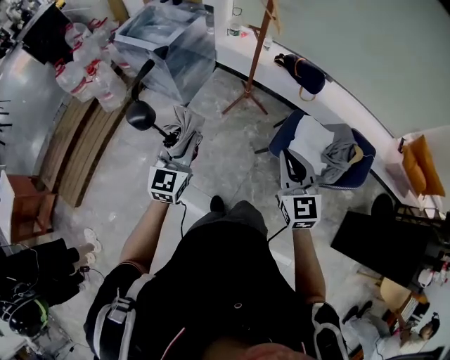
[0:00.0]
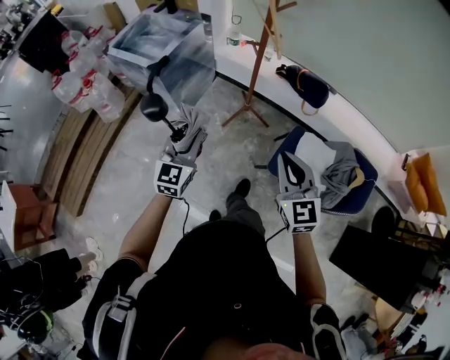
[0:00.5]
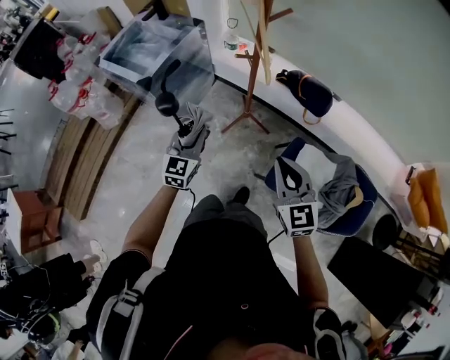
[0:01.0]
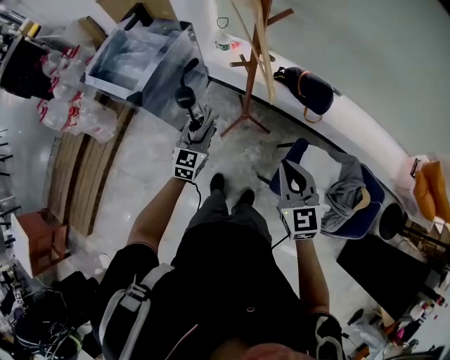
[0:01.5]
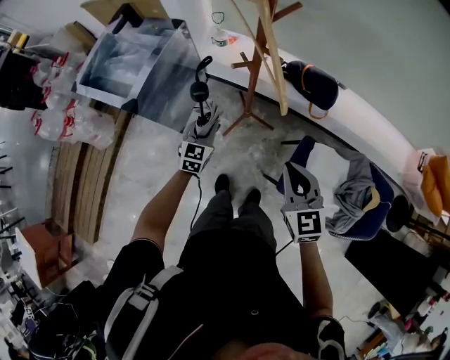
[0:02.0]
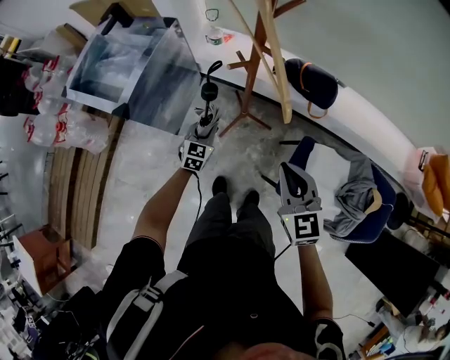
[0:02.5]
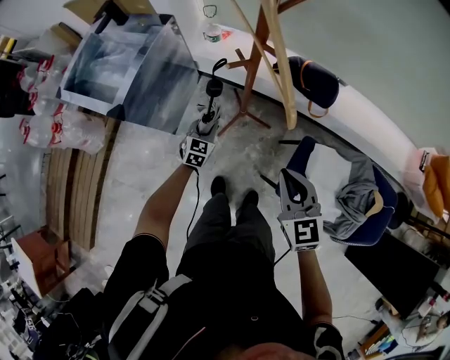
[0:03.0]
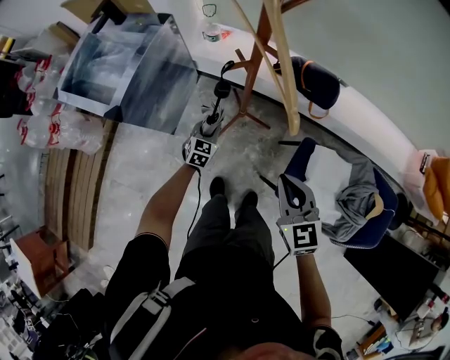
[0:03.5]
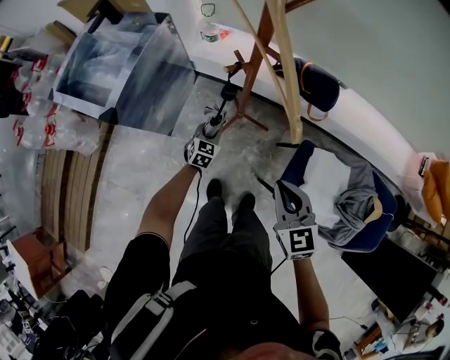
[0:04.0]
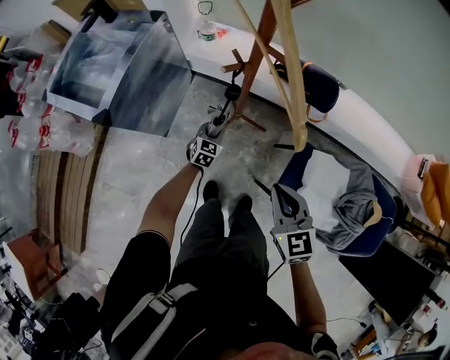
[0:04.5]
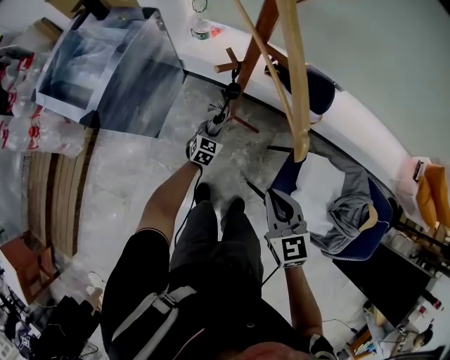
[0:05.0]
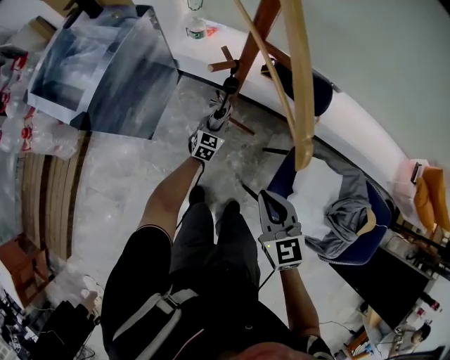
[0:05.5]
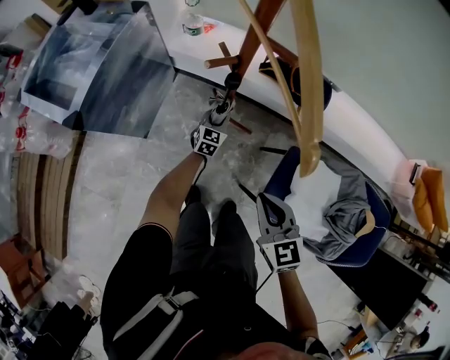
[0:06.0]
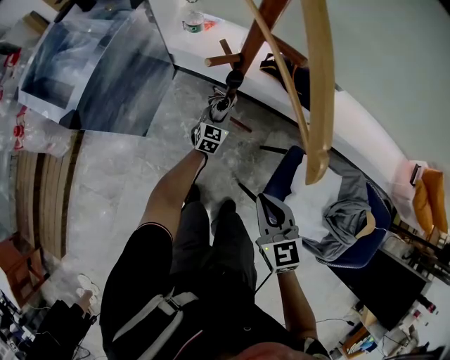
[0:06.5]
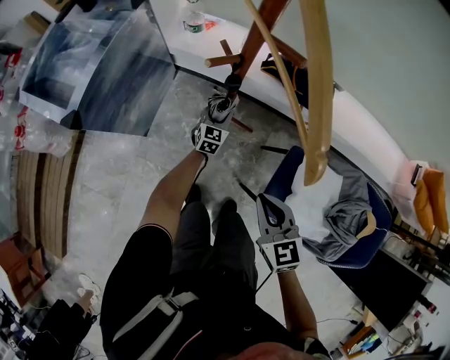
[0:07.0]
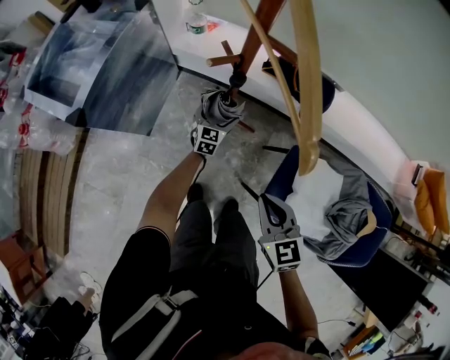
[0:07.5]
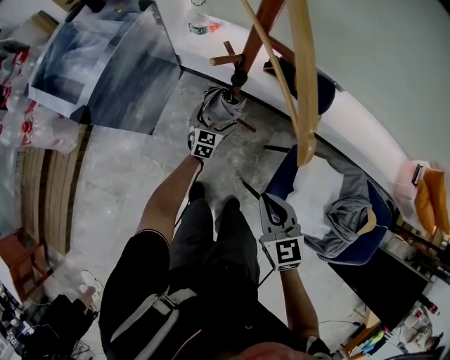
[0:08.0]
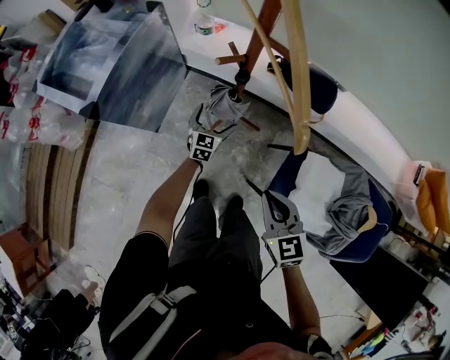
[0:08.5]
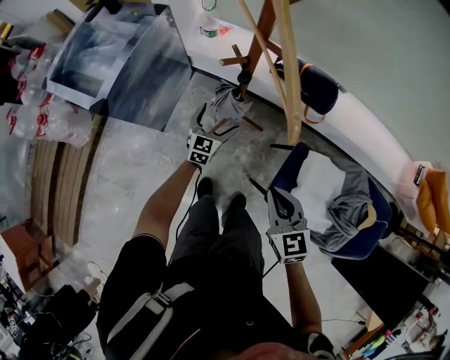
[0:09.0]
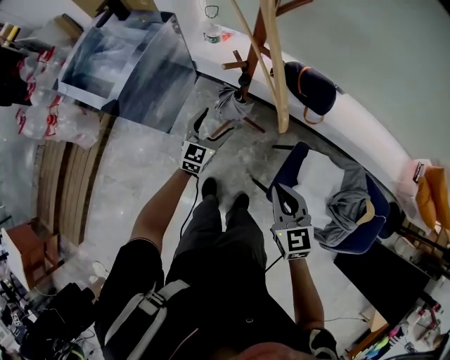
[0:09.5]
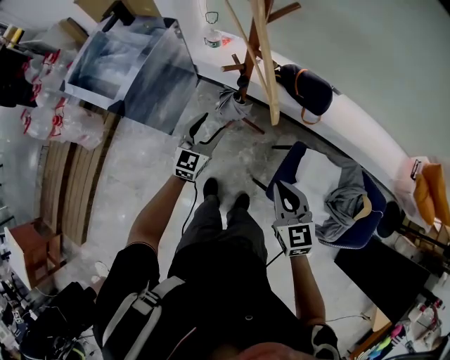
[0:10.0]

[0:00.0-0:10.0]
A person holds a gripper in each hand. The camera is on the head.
0:00.0 to 0:02.0: The left gripper moves forward and downward, about 50 cm; the right gripper goes roughly 30 cm forward.
0:02.0 to 0:04.0: The right gripper is displaced downward by roughly 10 cm. Meanwhile the left gripper heads downward, covering approximately 20 cm.
0:04.0 to 0:06.0: The right gripper goes roughly 10 cm downward. The left gripper travels forward, to the right and downward by about 15 cm.
0:06.0 to 0:08.0: The left gripper opens.
0:08.0 to 0:10.0: The right gripper moves upward, approximately 10 cm. The left gripper travels upward and backward by approximately 30 cm, and closes its fingers.

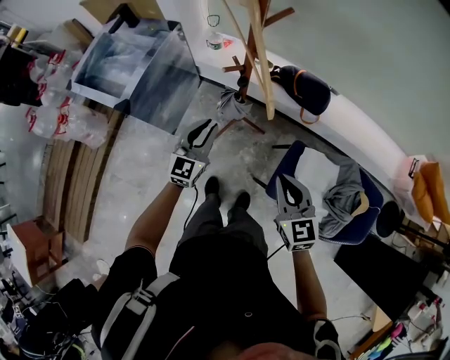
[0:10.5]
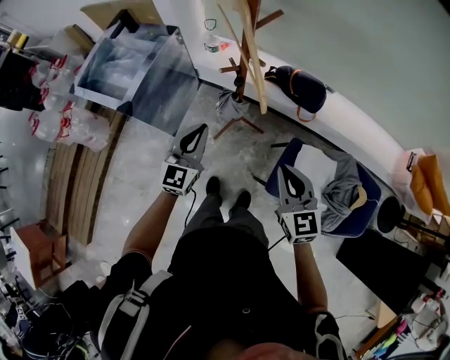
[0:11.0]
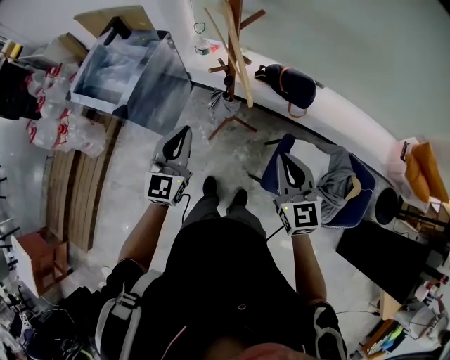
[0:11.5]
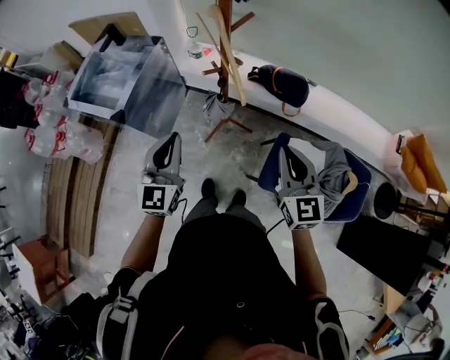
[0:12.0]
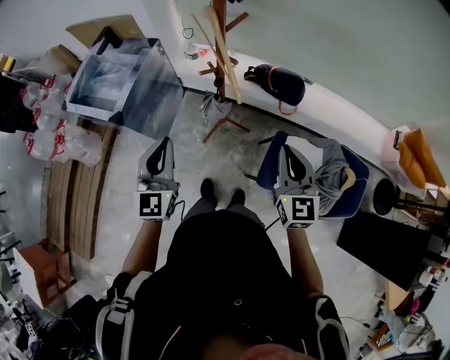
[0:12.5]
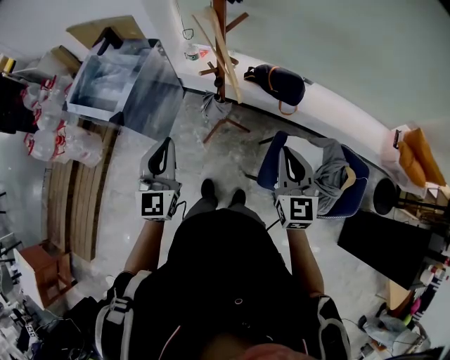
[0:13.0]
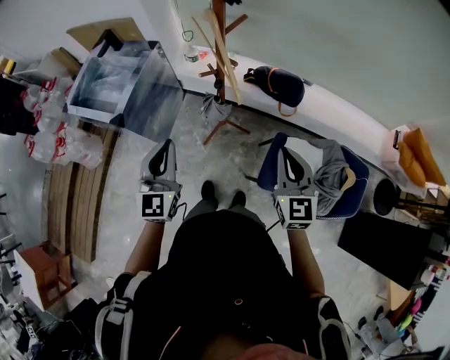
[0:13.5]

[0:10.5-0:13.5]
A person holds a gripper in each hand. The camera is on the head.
0:10.5 to 0:12.0: The right gripper is displaced upward by some 10 cm; the left gripper goes about 20 cm upward and backward.
0:12.0 to 0:13.5: The grippers move only a little.

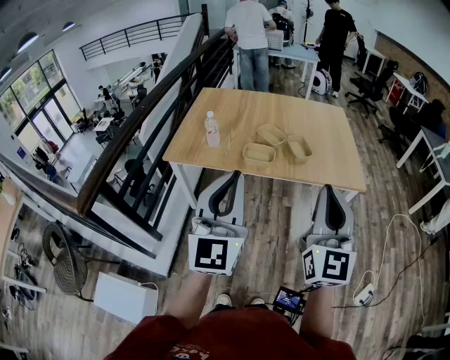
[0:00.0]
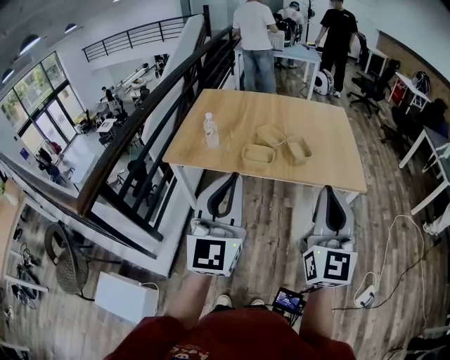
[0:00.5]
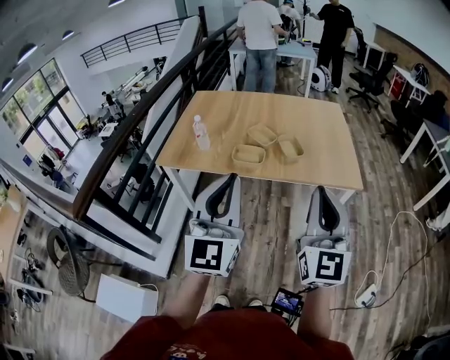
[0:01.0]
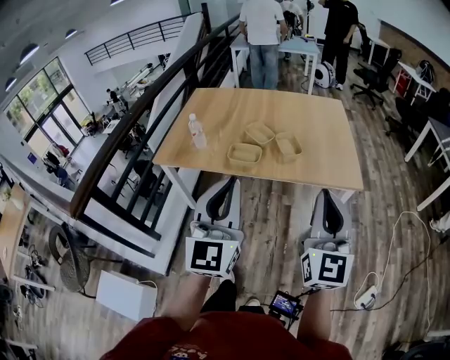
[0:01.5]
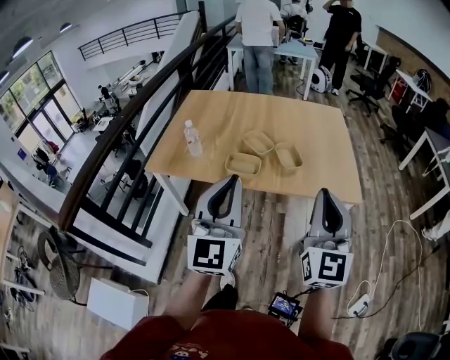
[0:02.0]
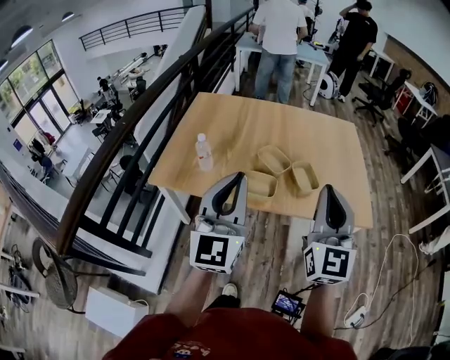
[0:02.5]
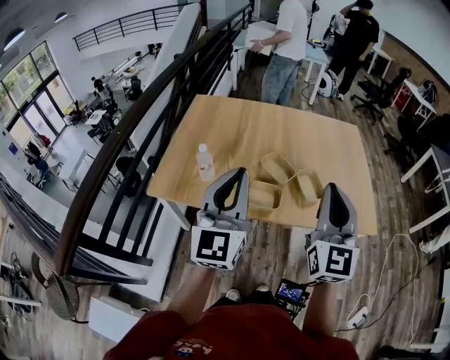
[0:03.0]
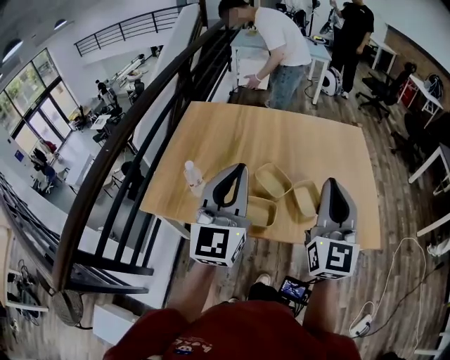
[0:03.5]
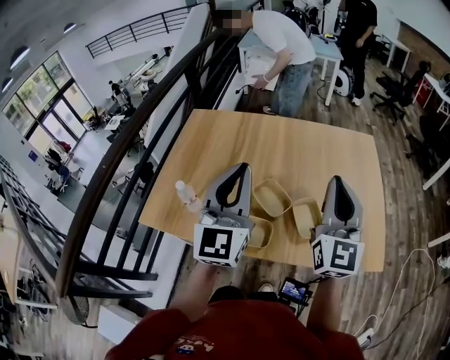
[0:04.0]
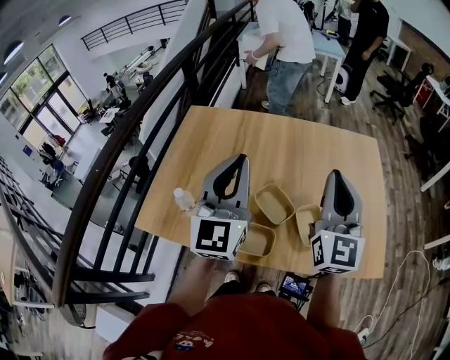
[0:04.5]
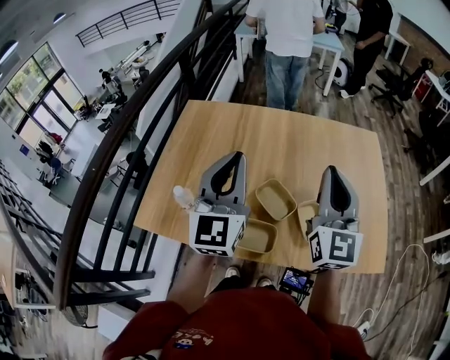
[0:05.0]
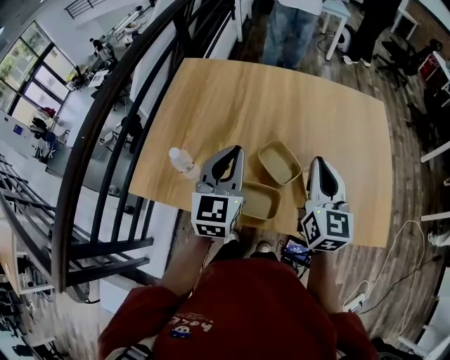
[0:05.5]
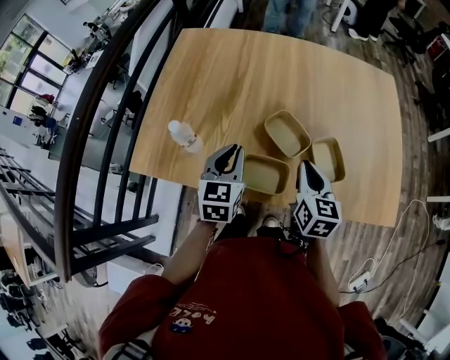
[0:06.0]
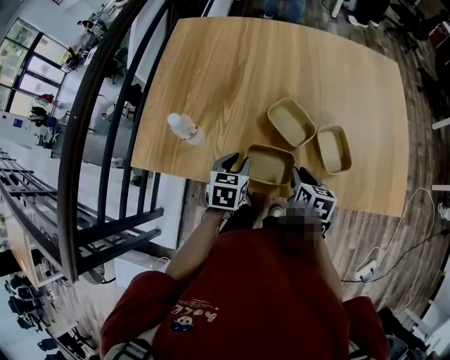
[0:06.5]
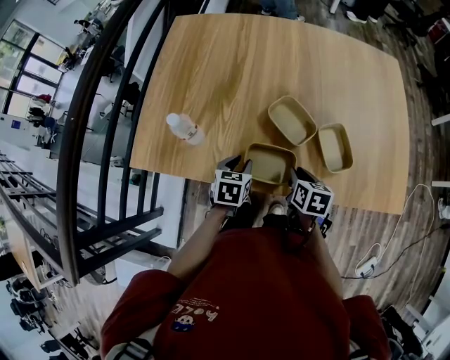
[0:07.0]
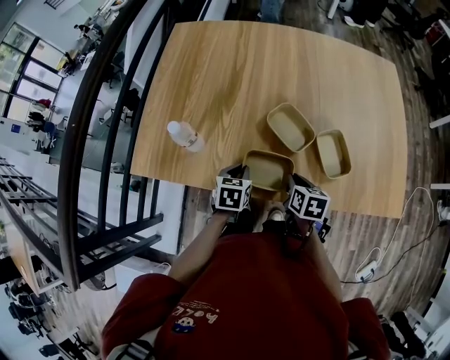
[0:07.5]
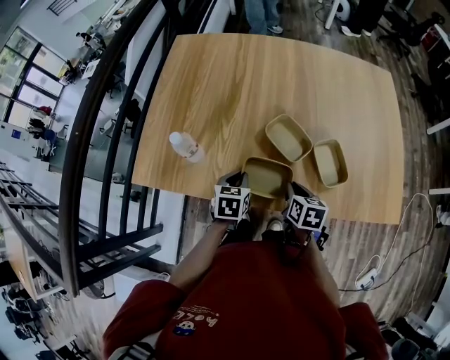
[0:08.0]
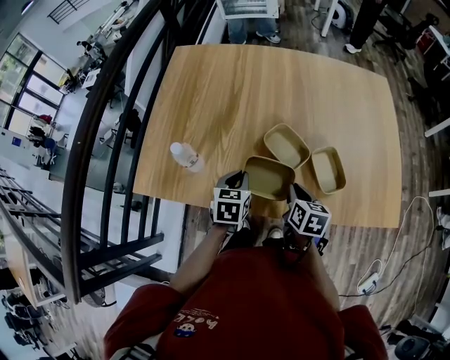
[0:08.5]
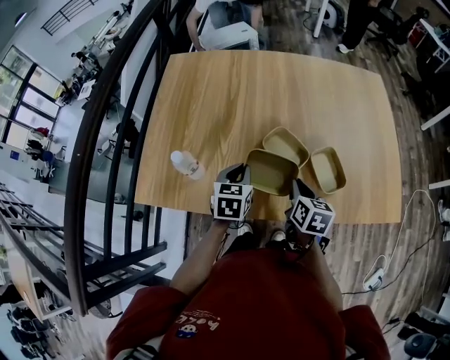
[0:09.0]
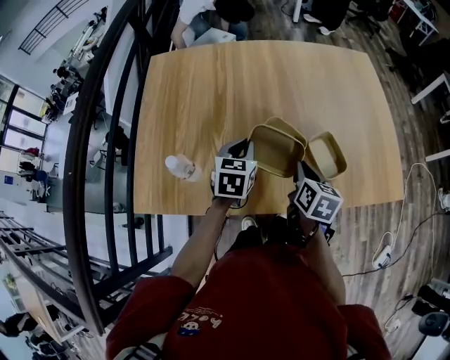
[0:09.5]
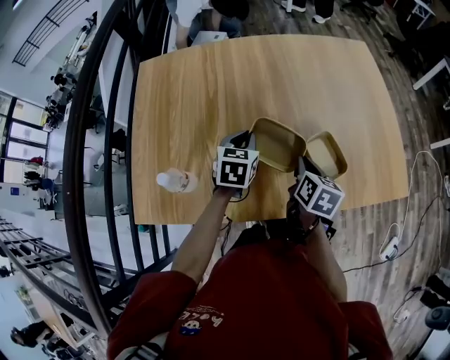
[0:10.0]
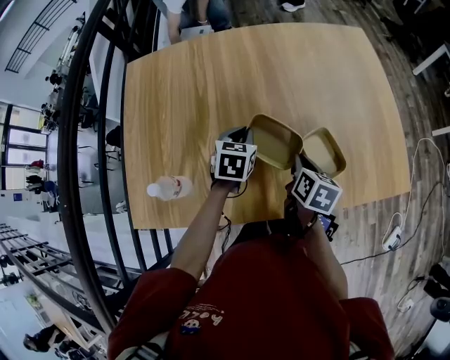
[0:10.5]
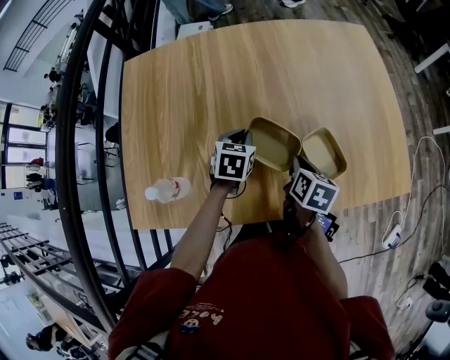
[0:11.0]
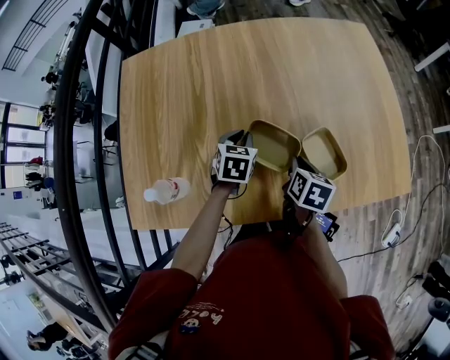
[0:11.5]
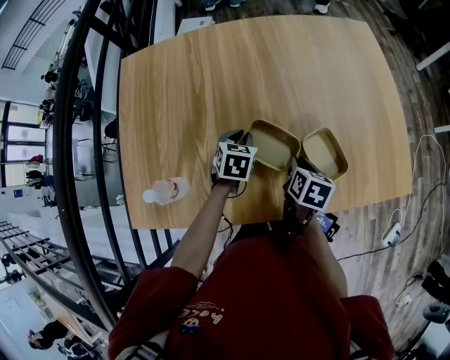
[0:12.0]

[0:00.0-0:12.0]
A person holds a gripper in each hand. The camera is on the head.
0:00.0 to 0:02.0: Both grippers travel together forward and to the right, approximately 10 cm.
0:02.0 to 0:04.0: The two grippers go approximately 35 cm forward.
0:04.0 to 0:06.0: The grippers both shift downward by about 25 cm. The left gripper points its fingers roughly 40 degrees further downward. The right gripper angles its fingers downward, by approximately 40 degrees.
0:06.0 to 0:08.0: Both grippers move downward, about 15 cm. The left gripper rotates approximately 30 degrees, and opens, then closes once more. The right gripper changes its angle by about 30 degrees.
0:08.0 to 0:10.0: The right gripper moves forward and upward, approximately 10 cm, and changes its angle by some 20 degrees. The left gripper is displaced forward and upward by some 20 cm.
0:10.0 to 0:12.0: The grippers both shift downward by about 10 cm.

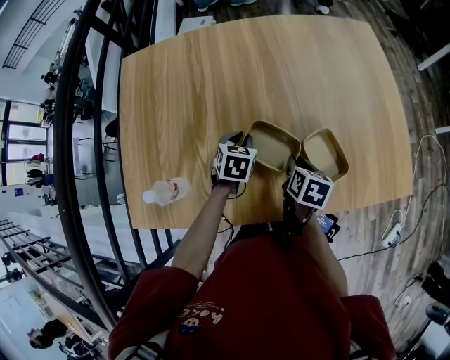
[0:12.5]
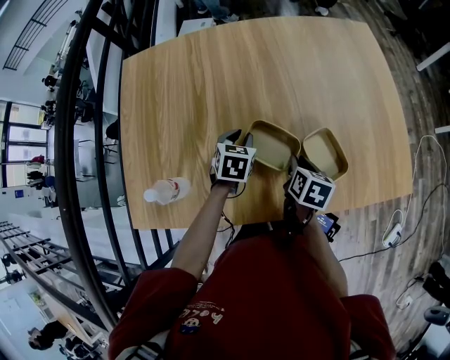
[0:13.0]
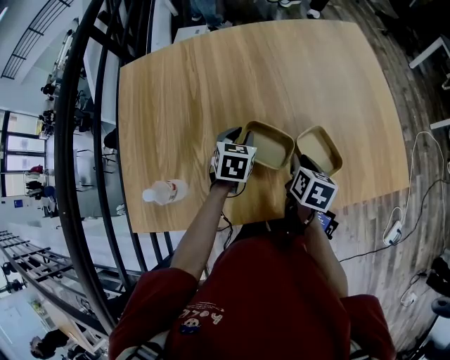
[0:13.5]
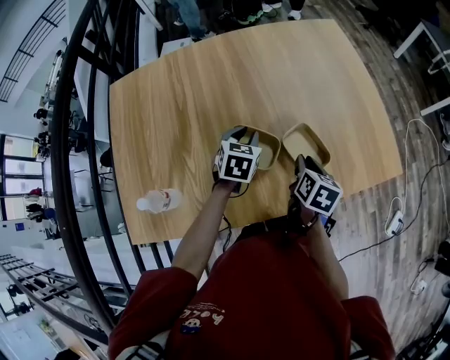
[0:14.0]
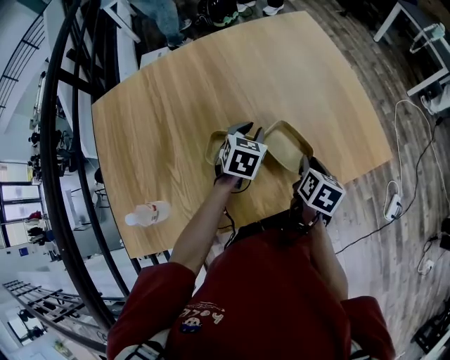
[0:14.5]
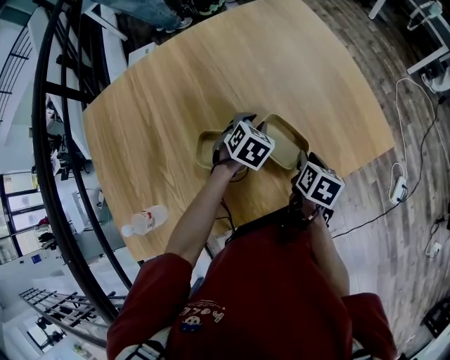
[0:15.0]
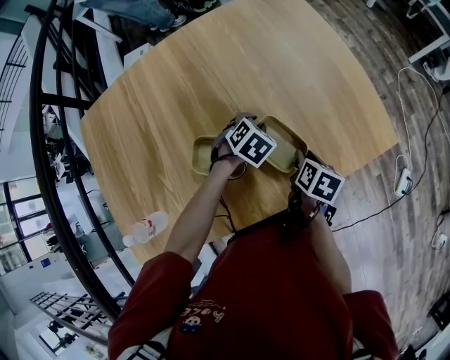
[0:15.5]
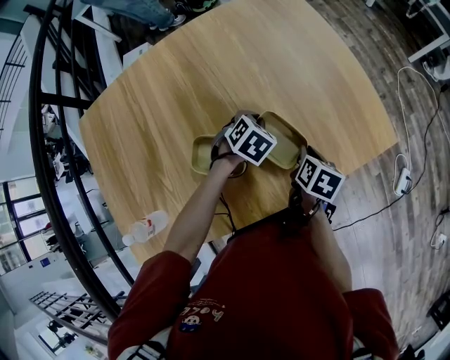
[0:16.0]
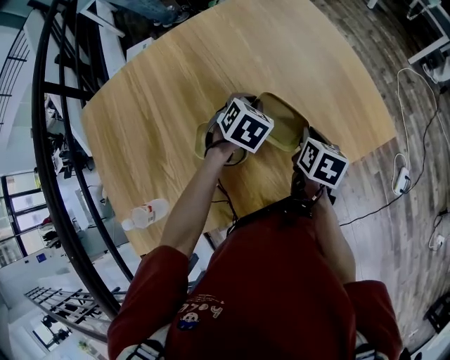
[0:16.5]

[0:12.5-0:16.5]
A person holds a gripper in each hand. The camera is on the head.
0:12.5 to 0:14.5: Both grippers travel together to the right, roughly 15 cm. The right gripper turns by some 20 degrees. The left gripper swivels about 20 degrees.
0:14.5 to 0:16.5: The left gripper changes place by approximately 5 cm, and rotates some 20 degrees.
